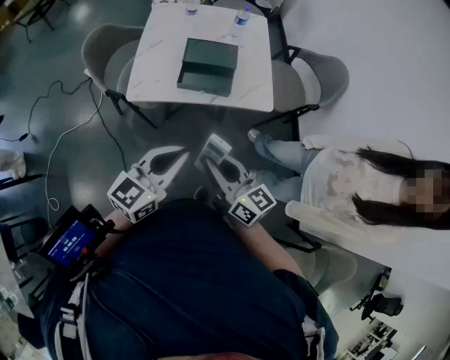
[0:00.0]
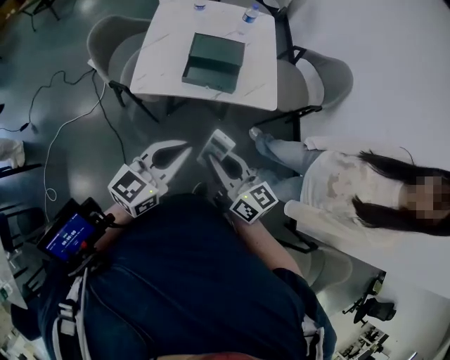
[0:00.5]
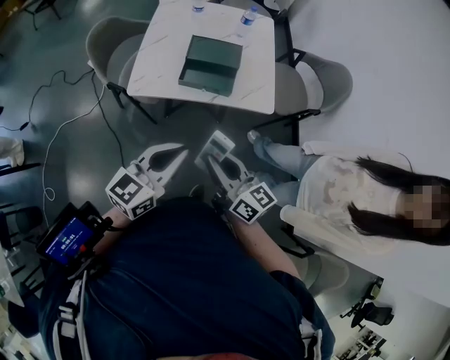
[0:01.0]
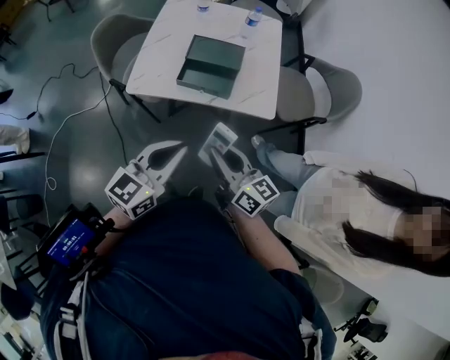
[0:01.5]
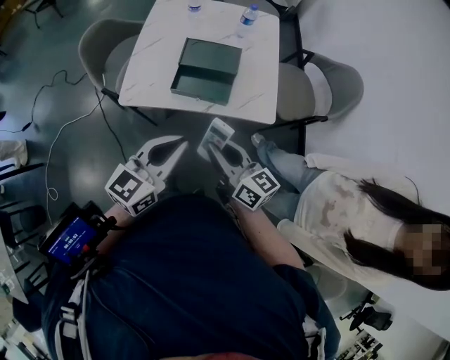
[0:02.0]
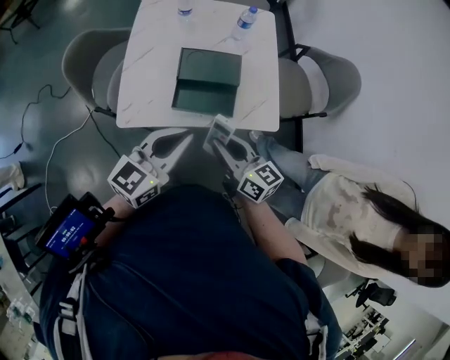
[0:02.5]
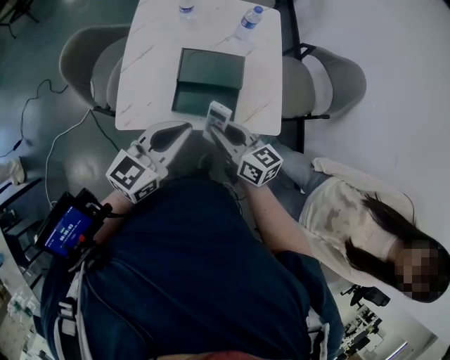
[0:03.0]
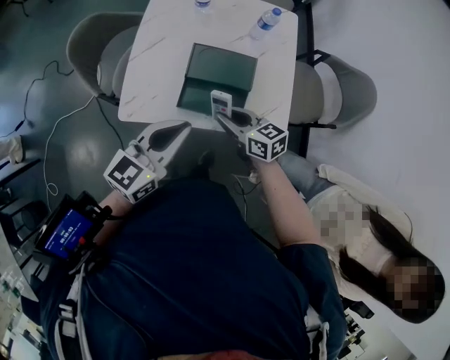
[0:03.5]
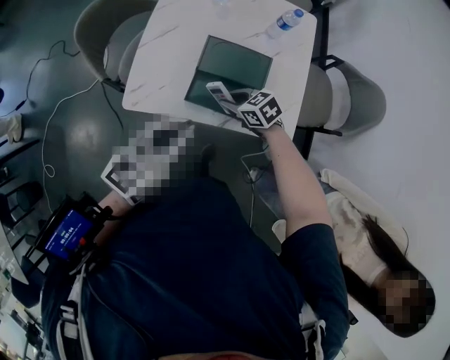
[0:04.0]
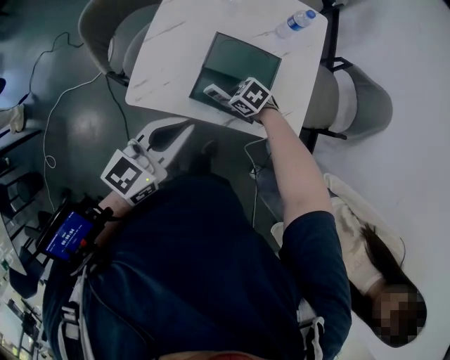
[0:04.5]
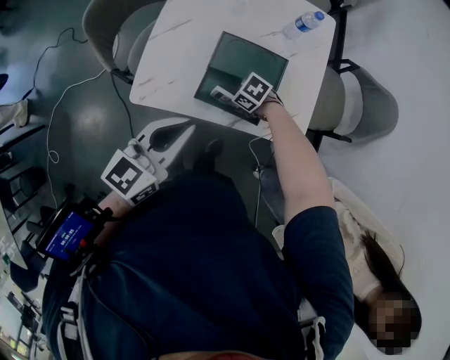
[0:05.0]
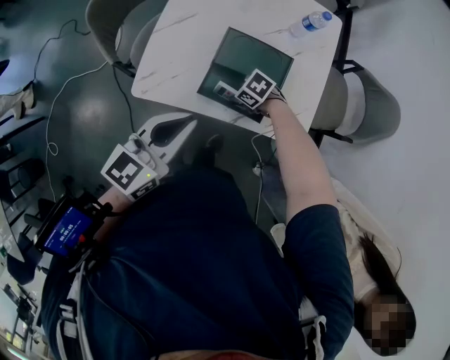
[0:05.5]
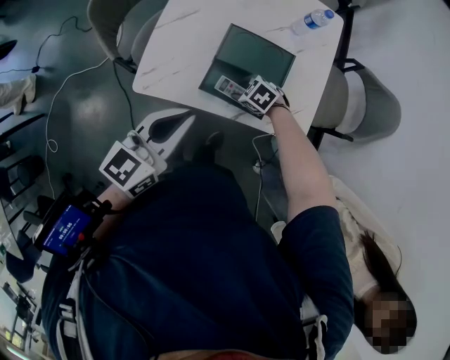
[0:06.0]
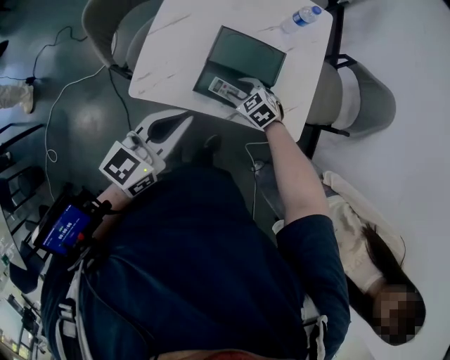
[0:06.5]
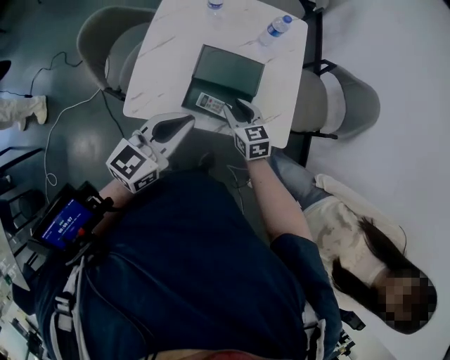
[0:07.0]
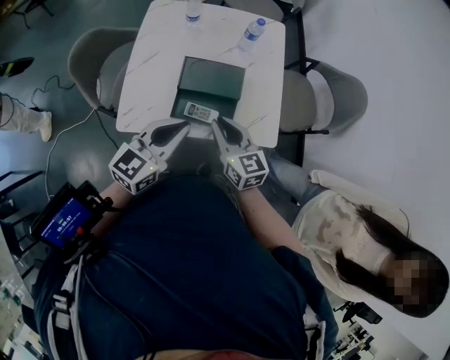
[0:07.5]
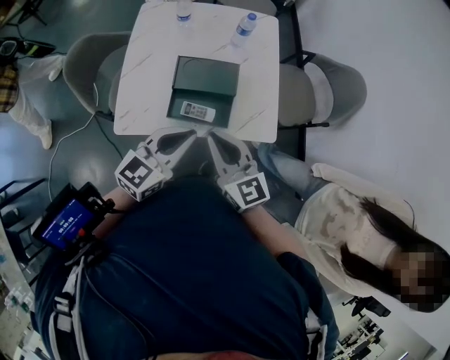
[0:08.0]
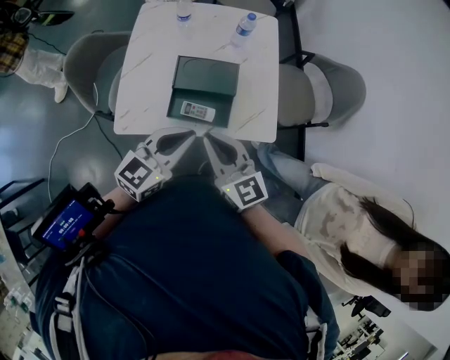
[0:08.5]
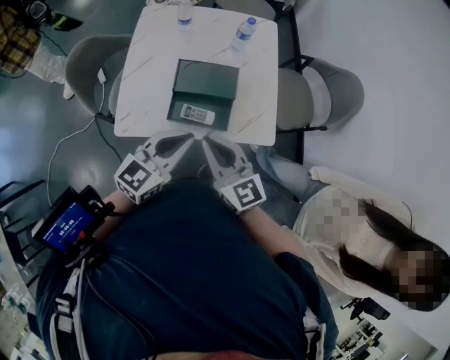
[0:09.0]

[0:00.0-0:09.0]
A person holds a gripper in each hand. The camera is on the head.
0:00.0 to 0:02.0: The right gripper shifts approximately 5 cm forward.
0:02.0 to 0:04.5: The right gripper travels downward by approximately 20 cm, and points its fingers about 50 degrees further downward.
0:04.5 to 0:07.0: The right gripper heads upward, covering approximately 10 cm, and swivels some 60 degrees.
0:07.0 to 0:09.0: The right gripper travels upward and backward by roughly 20 cm, points its fingers roughly 30 degrees further upward, and closes its fingers. Meanwhile the left gripper ends up some 5 cm from where it was.

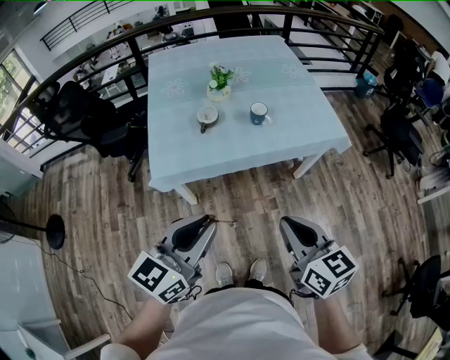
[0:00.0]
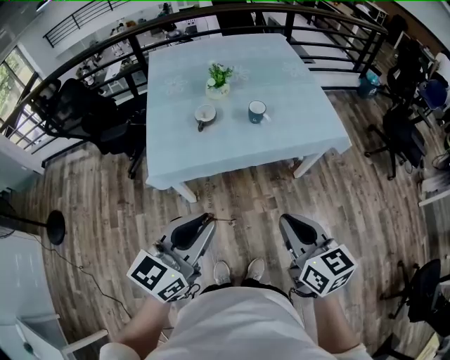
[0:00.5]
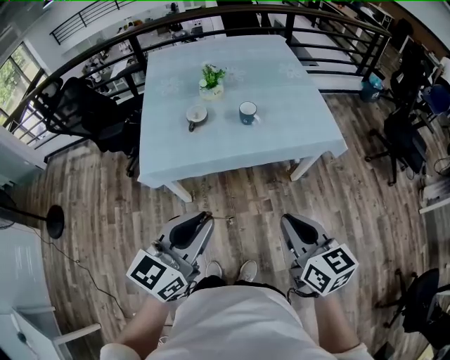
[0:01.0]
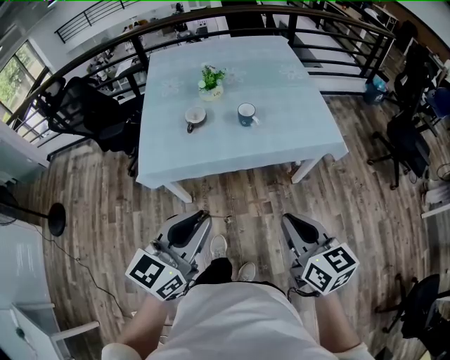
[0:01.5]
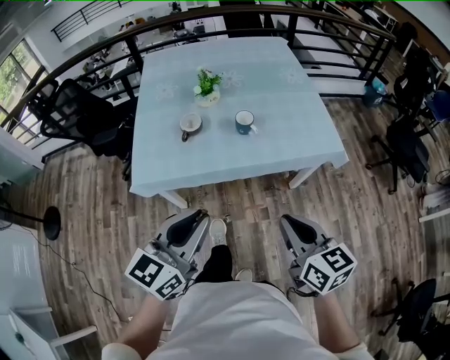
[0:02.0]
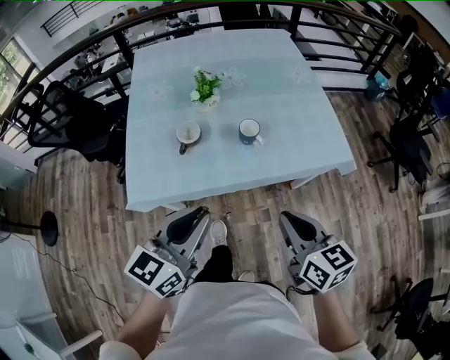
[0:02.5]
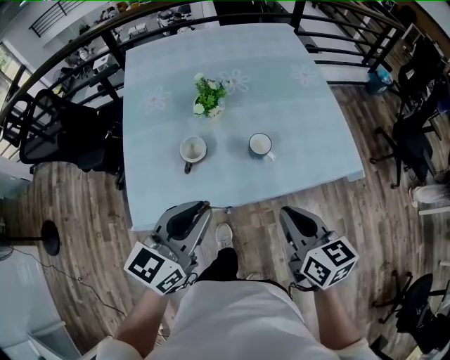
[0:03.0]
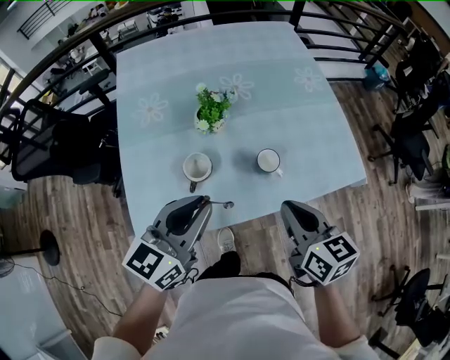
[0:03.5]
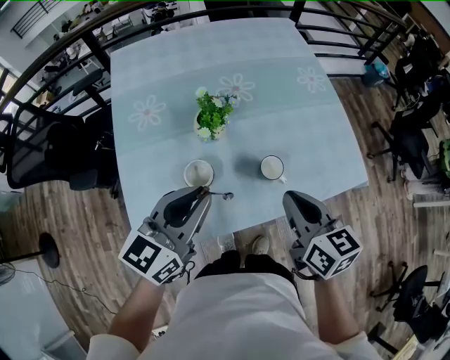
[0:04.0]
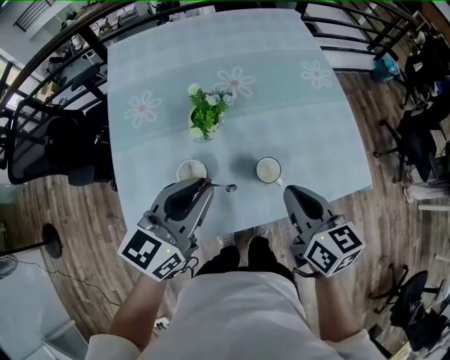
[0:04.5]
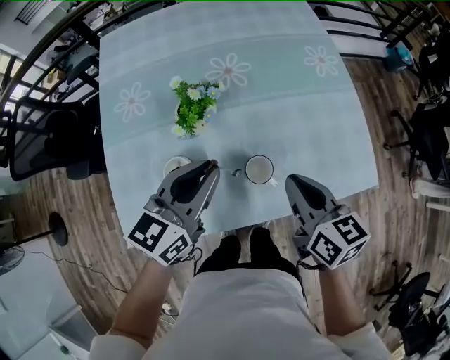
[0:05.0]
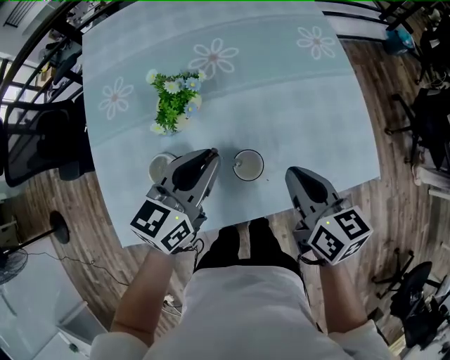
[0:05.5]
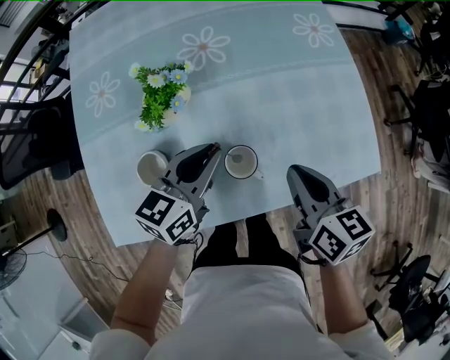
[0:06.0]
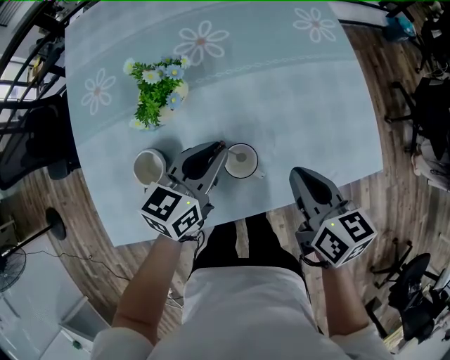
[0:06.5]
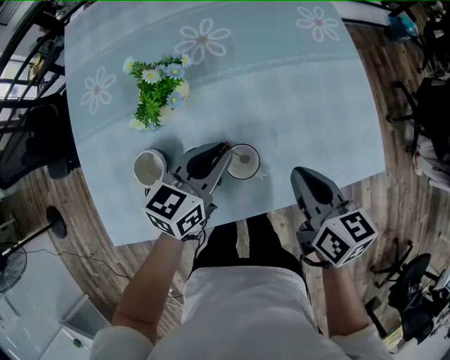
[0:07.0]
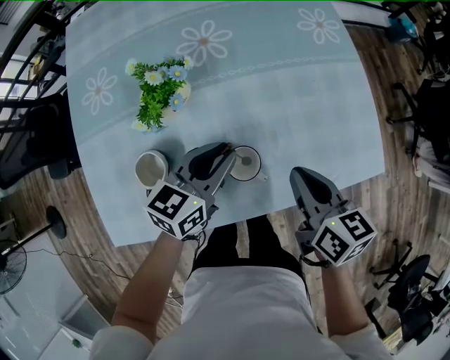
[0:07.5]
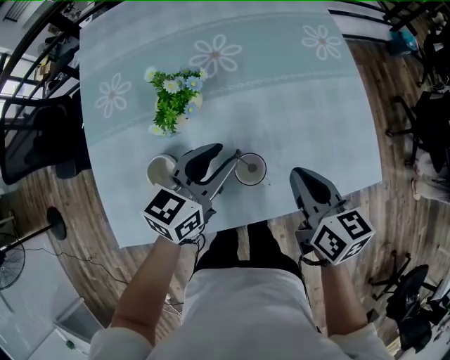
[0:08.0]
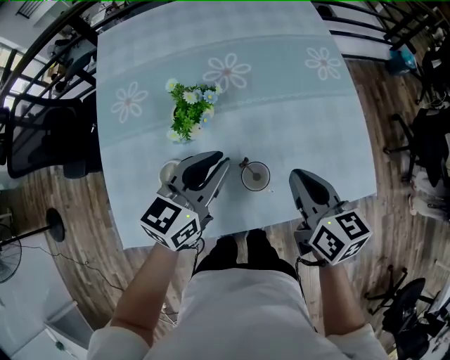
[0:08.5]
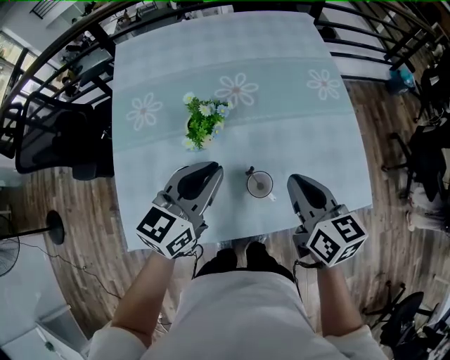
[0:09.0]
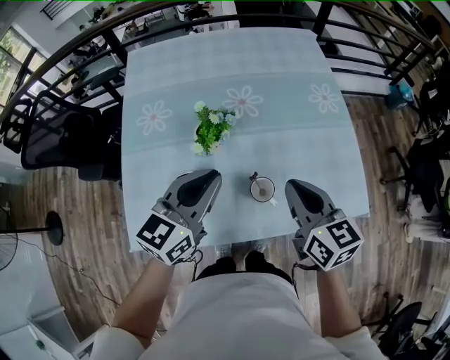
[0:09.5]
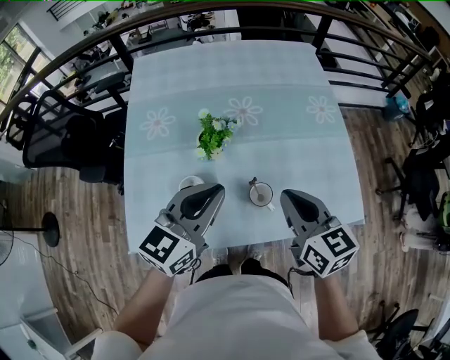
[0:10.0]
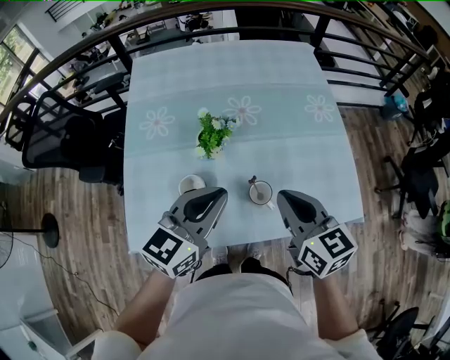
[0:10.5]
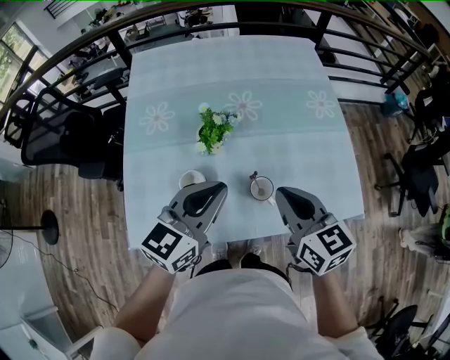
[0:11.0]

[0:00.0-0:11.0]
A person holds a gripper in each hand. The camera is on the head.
0:00.0 to 0:02.0: Both grippers travel together to the right and forward, about 15 cm.
0:02.0 to 0:03.5: The two grippers go roughly 35 cm forward.
0:03.5 to 0:05.5: Both grippers move forward, downward and to the right, roughly 25 cm.
0:05.5 to 0:07.5: The right gripper is displaced downward by roughly 5 cm. The left gripper heads downward, covering roughly 10 cm.
0:07.5 to 0:09.0: Both grippers travel together upward, approximately 15 cm. The left gripper opens, then closes again.
0:09.0 to 0:11.0: The right gripper travels upward by approximately 5 cm. Meanwhile the left gripper travels backward and upward by some 10 cm.

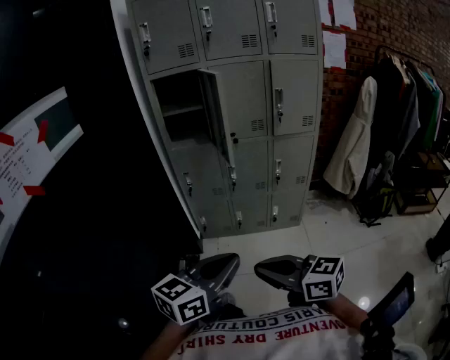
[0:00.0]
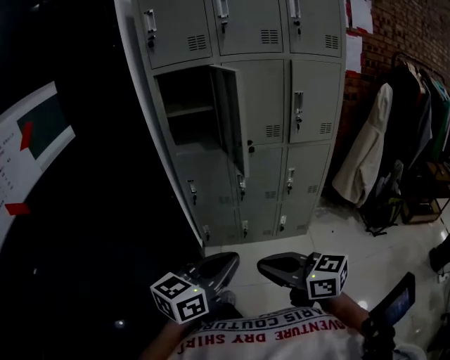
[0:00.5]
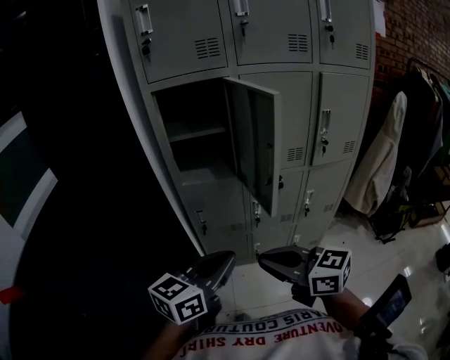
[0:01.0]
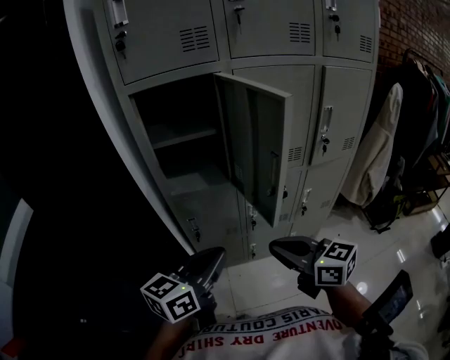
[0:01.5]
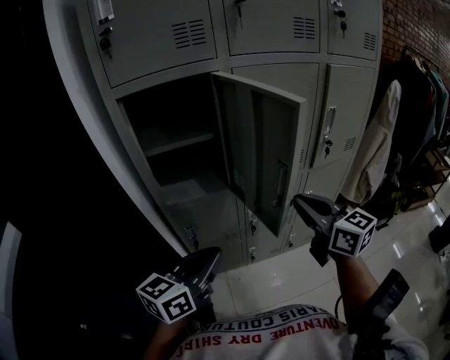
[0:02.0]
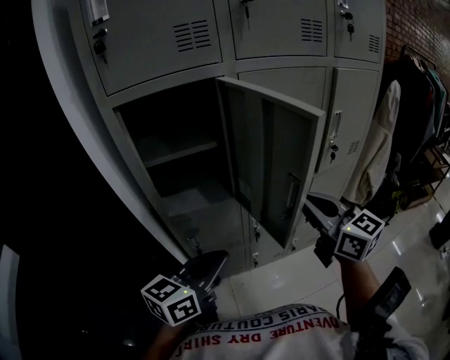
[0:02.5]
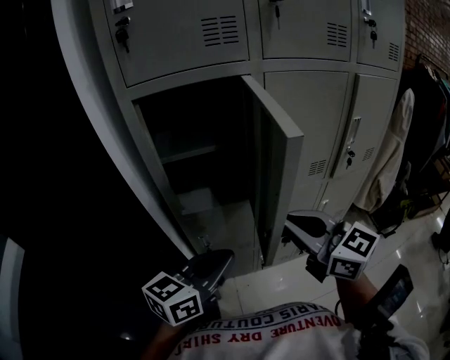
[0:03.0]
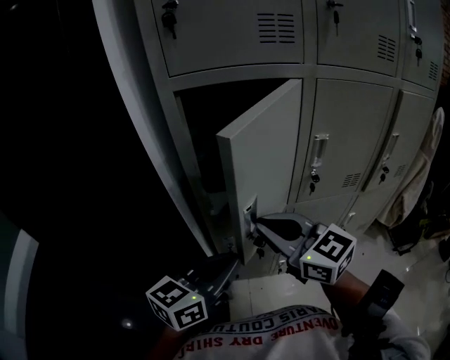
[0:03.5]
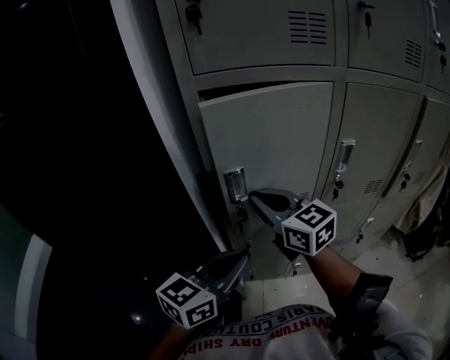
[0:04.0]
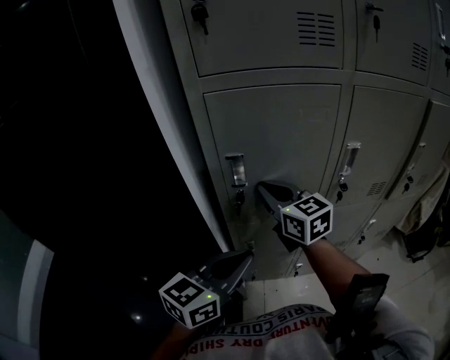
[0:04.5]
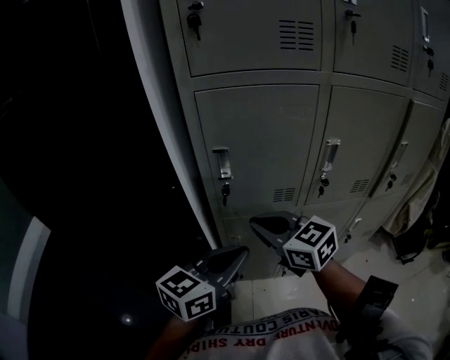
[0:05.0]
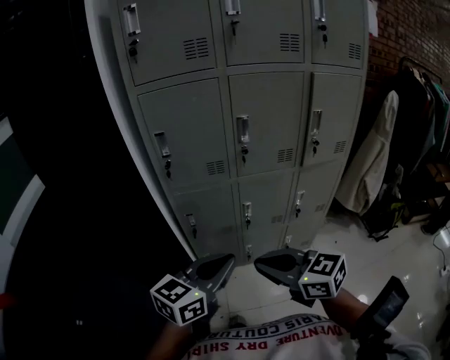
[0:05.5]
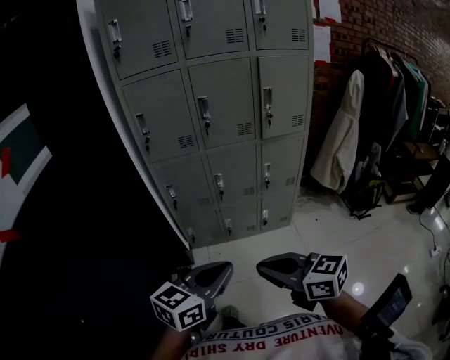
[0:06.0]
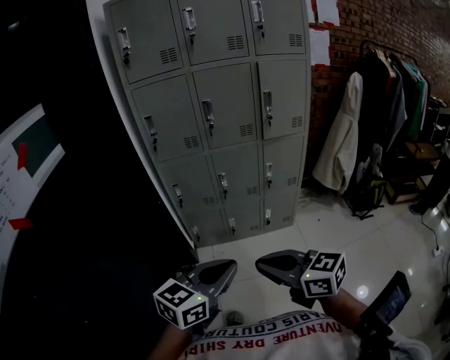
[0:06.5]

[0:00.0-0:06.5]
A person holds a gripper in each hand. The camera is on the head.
0:00.0 to 0:02.0: The two grippers travel together, forward, approximately 50 cm. The right gripper swivels some 40 degrees.
0:02.0 to 0:04.5: The right gripper travels to the left and forward by some 35 cm; the left gripper moves to the left and forward, about 15 cm.
0:04.5 to 0:06.5: The pair of grippers is taken backward and to the right, roughly 60 cm.
